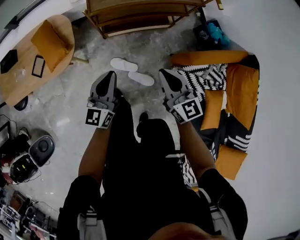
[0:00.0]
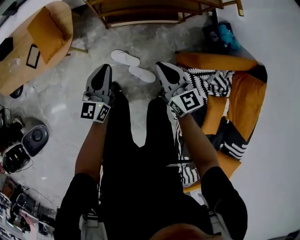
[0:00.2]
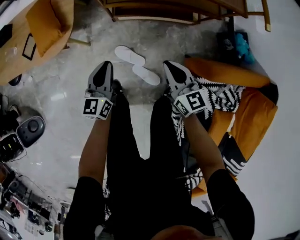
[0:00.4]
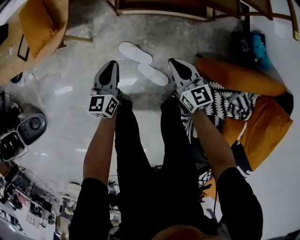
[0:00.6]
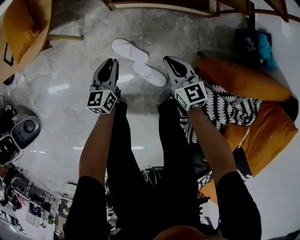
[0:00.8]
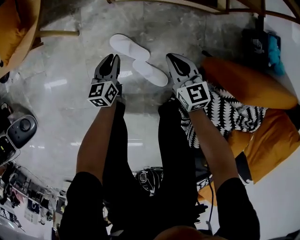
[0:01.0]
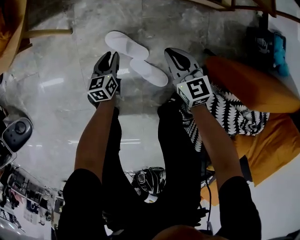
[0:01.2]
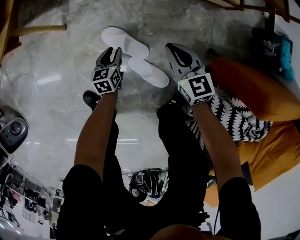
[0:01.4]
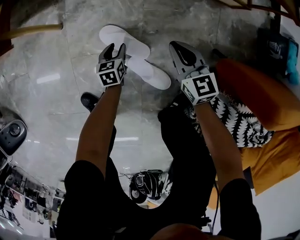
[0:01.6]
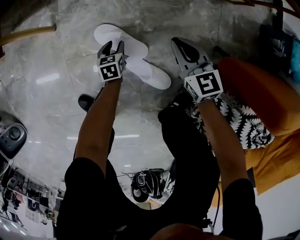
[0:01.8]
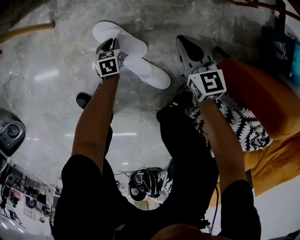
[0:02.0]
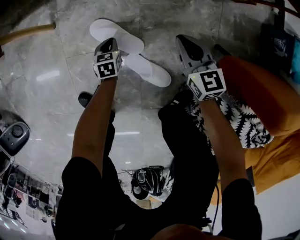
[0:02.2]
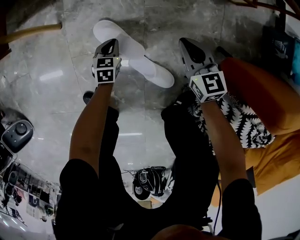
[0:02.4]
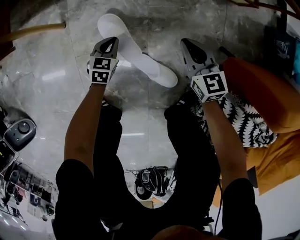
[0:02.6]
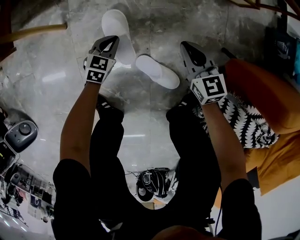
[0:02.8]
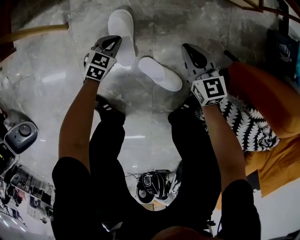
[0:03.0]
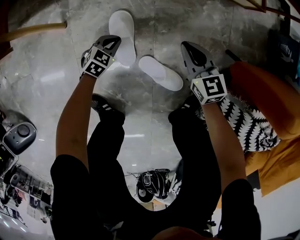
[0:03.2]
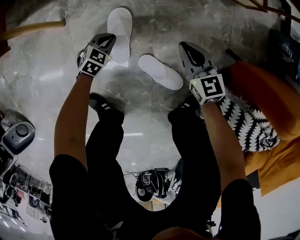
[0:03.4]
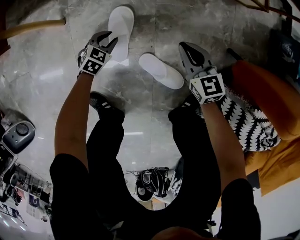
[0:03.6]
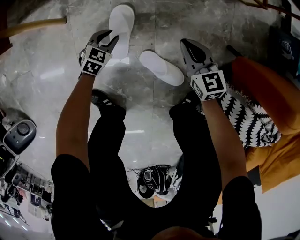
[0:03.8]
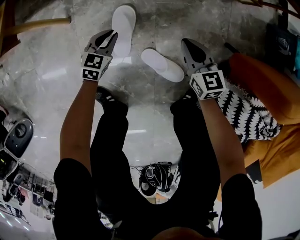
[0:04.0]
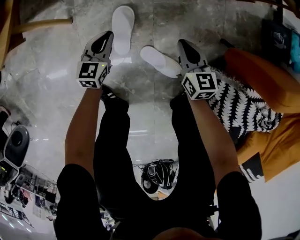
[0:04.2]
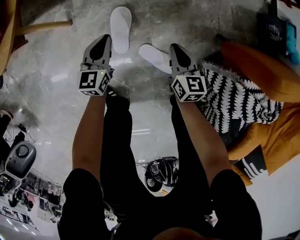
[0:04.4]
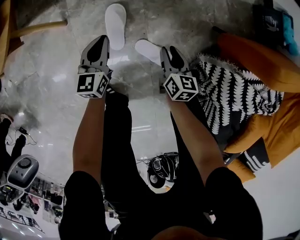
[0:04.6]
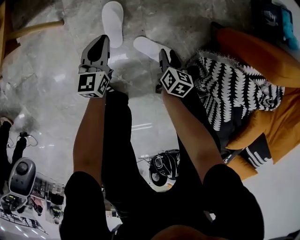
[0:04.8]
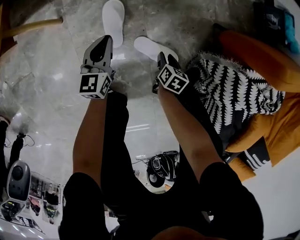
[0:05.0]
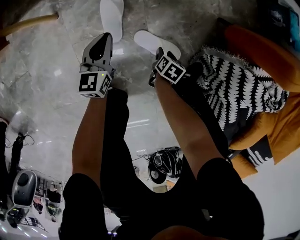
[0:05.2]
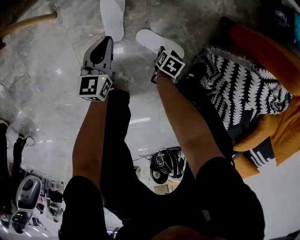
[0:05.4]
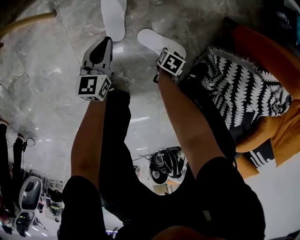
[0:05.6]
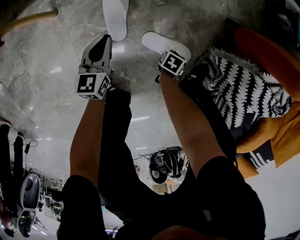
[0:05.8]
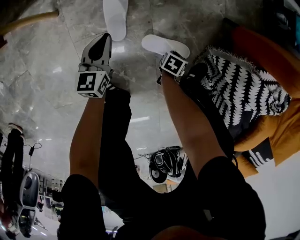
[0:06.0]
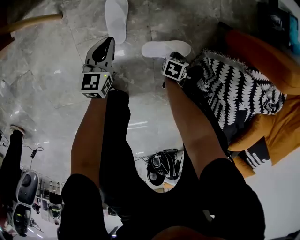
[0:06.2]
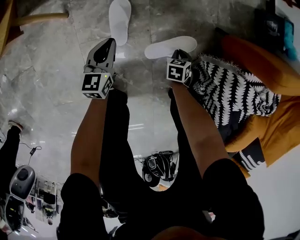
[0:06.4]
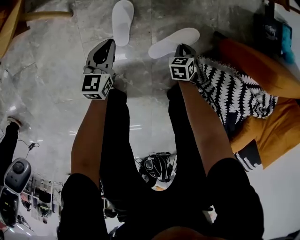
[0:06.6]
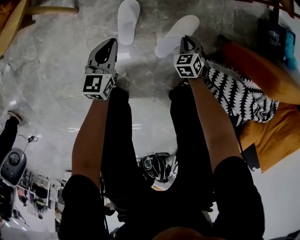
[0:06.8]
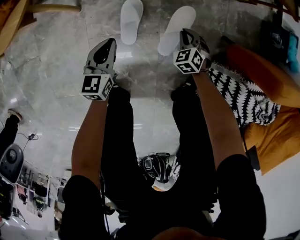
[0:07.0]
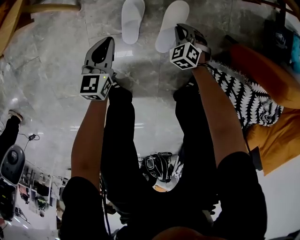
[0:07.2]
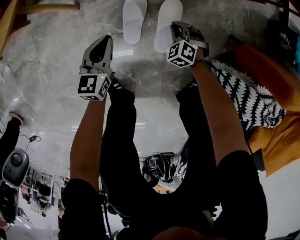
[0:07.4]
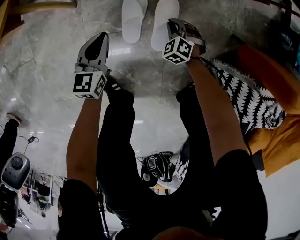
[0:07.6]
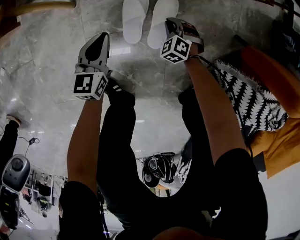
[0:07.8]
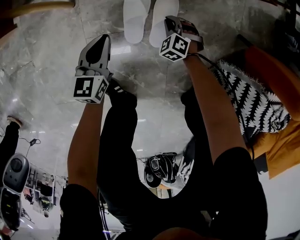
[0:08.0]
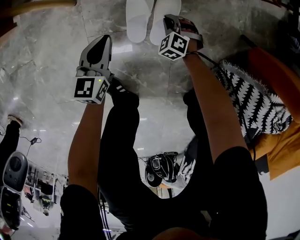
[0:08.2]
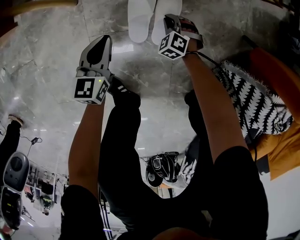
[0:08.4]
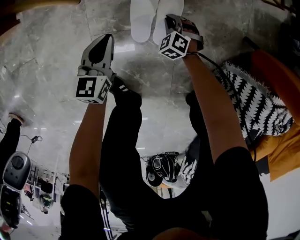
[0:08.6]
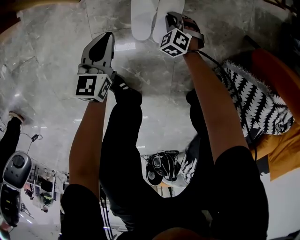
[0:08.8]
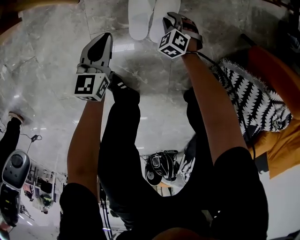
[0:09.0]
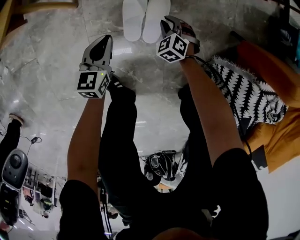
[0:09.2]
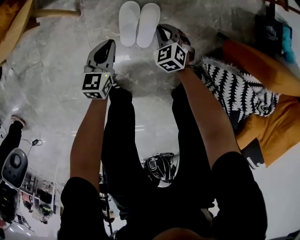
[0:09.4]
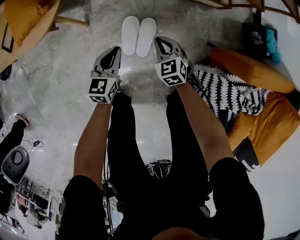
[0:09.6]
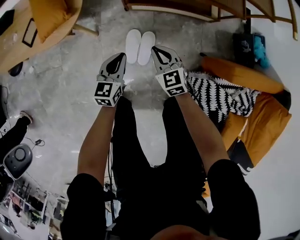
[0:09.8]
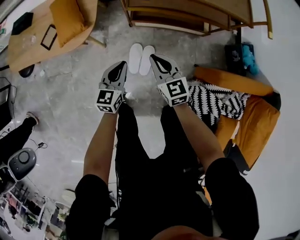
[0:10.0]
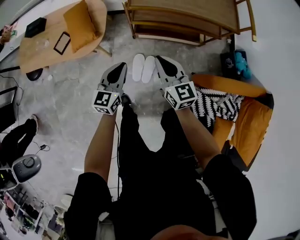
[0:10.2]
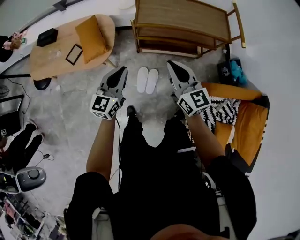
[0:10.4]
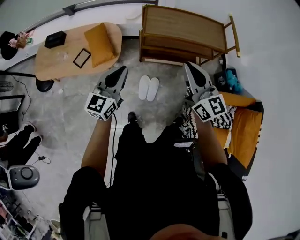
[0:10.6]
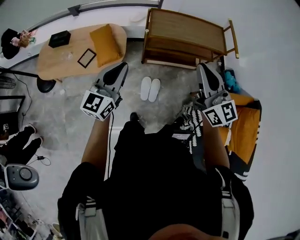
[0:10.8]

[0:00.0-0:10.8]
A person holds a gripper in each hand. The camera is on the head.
0:00.0 to 0:01.6: Both grippers travel together downward, some 60 cm. The left gripper tilts its fingers roughly 50 degrees downward, and opens its fingers. The right gripper changes its angle by about 30 degrees.
0:01.6 to 0:03.0: The left gripper goes downward and returns, roughly 5 cm each way, swivels some 40 degrees, and closes up.
0:03.0 to 0:04.6: The right gripper goes about 10 cm backward, turns by about 40 degrees, and opens up. Meanwhile the left gripper heads upward, covering some 20 cm, rotates some 40 degrees, and opens, then closes again.
0:04.6 to 0:06.2: The right gripper moves downward, roughly 15 cm, tips its fingers downward by some 40 degrees, and closes, while the left gripper is displaced downward by some 5 cm.
0:06.2 to 0:07.8: The left gripper shifts by roughly 10 cm; the right gripper moves some 10 cm upward and comes back, and rolls counterclockwise, seen from behind, by some 80 degrees.
0:07.8 to 0:09.2: There are only small adjustments of the grippers.
0:09.2 to 0:10.8: The grippers both shift upward by about 90 cm. The left gripper angles its fingers upward, by approximately 40 degrees; the right gripper points its fingers some 70 degrees further upward.

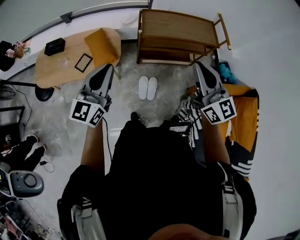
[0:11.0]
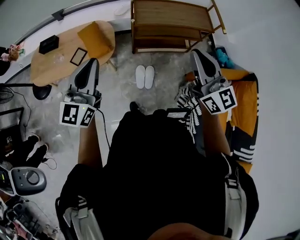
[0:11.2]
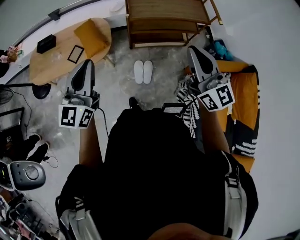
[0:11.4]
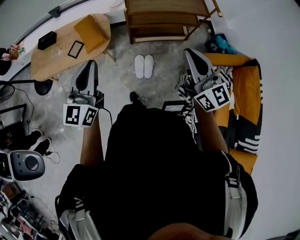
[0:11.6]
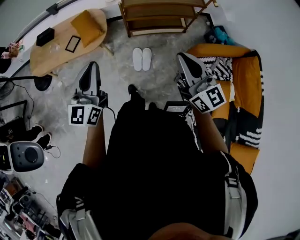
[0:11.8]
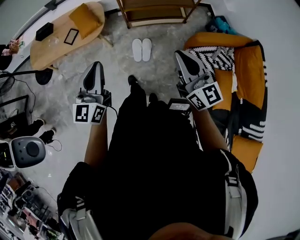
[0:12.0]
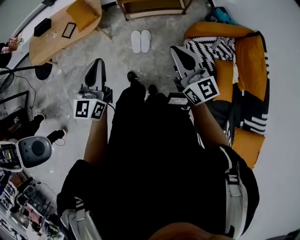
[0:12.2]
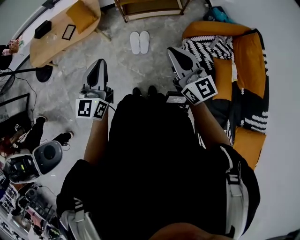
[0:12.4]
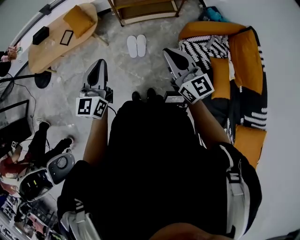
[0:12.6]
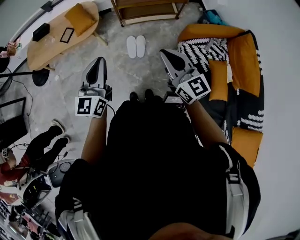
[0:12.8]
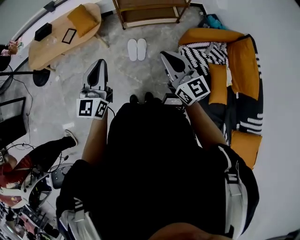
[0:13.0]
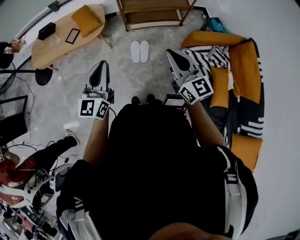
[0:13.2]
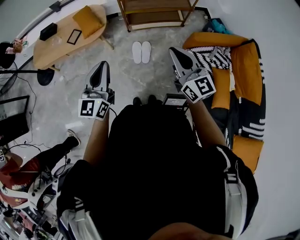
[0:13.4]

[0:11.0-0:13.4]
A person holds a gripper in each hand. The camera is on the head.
0:11.0 to 0:12.2: The right gripper travels backward and downward by roughly 25 cm, while the left gripper travels backward and to the right by about 25 cm.
0:12.2 to 0:13.4: There are only small adjustments of the grippers.

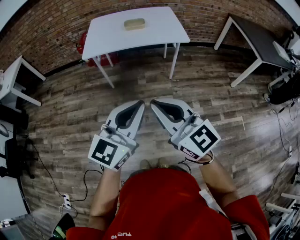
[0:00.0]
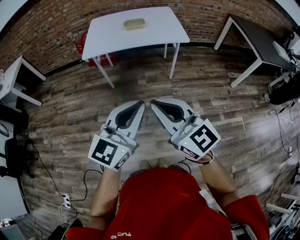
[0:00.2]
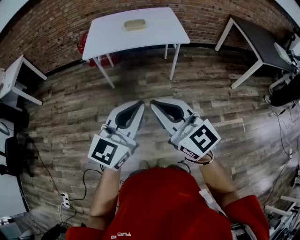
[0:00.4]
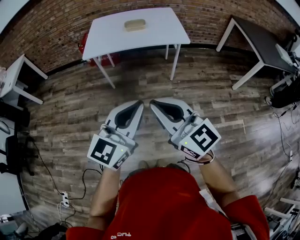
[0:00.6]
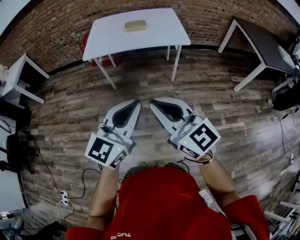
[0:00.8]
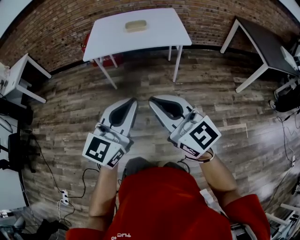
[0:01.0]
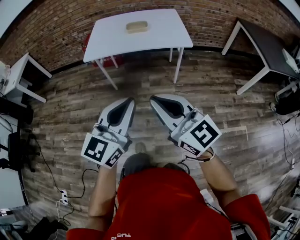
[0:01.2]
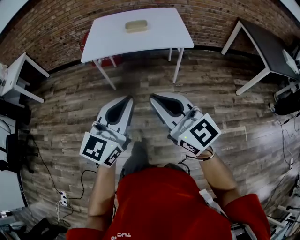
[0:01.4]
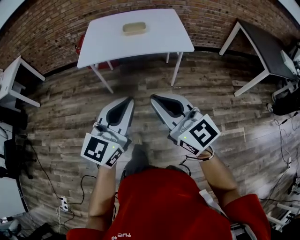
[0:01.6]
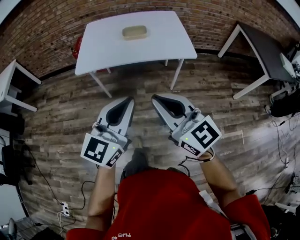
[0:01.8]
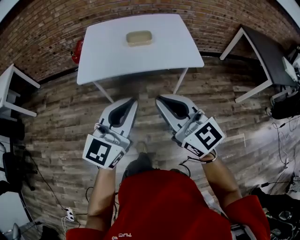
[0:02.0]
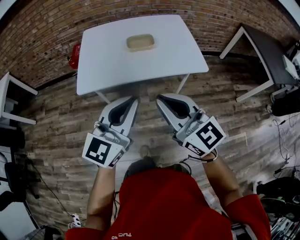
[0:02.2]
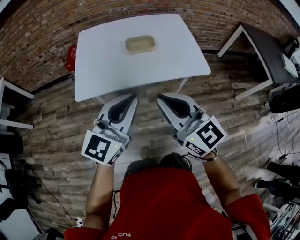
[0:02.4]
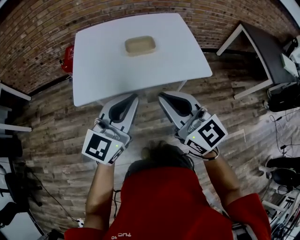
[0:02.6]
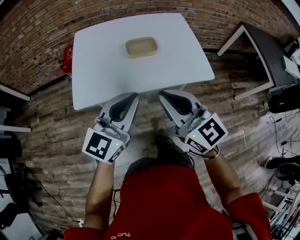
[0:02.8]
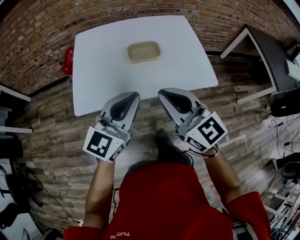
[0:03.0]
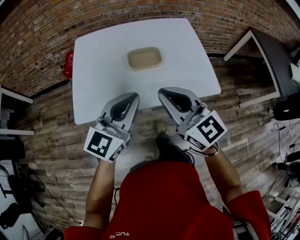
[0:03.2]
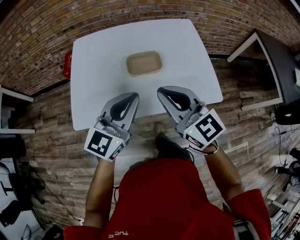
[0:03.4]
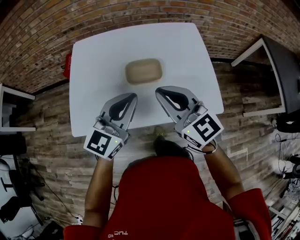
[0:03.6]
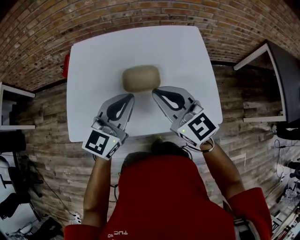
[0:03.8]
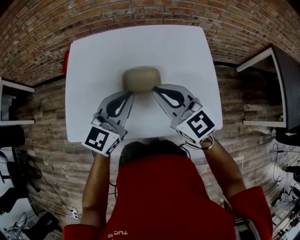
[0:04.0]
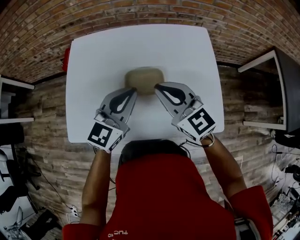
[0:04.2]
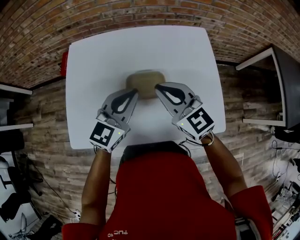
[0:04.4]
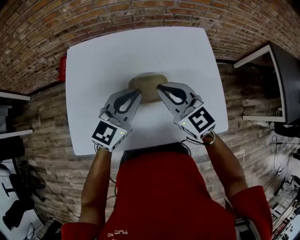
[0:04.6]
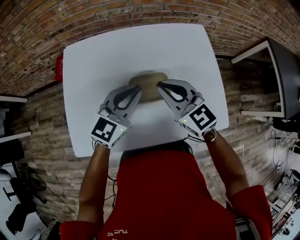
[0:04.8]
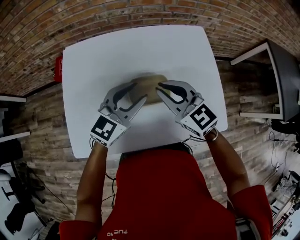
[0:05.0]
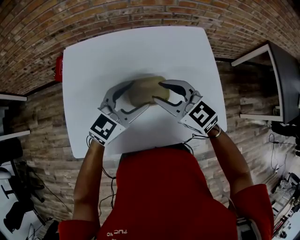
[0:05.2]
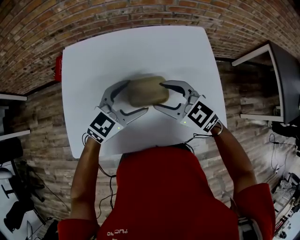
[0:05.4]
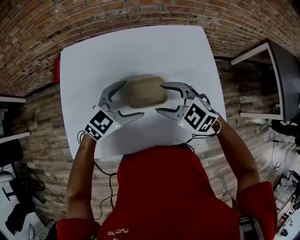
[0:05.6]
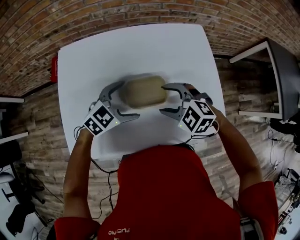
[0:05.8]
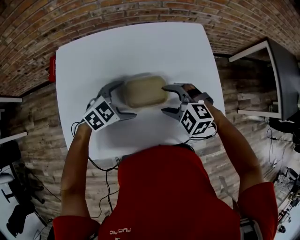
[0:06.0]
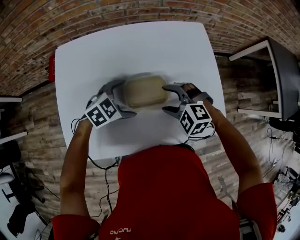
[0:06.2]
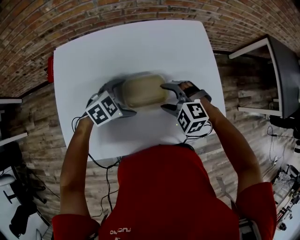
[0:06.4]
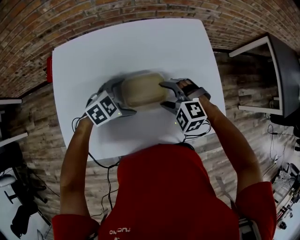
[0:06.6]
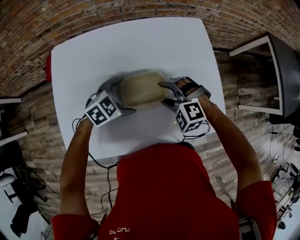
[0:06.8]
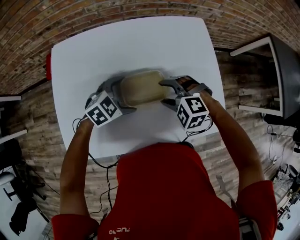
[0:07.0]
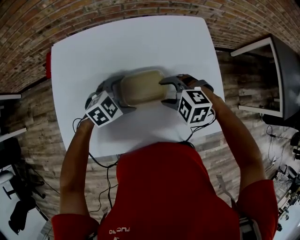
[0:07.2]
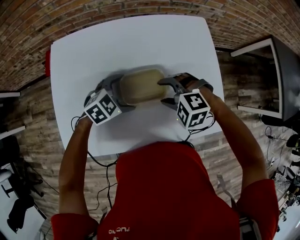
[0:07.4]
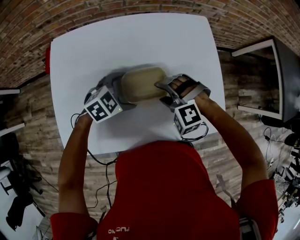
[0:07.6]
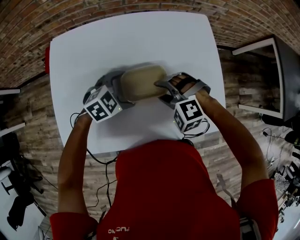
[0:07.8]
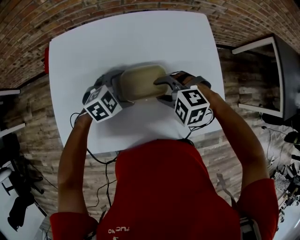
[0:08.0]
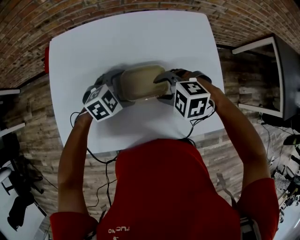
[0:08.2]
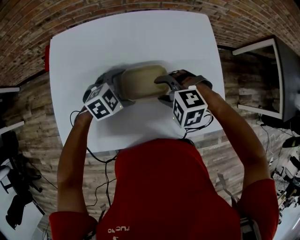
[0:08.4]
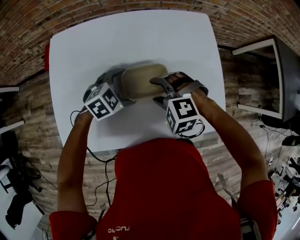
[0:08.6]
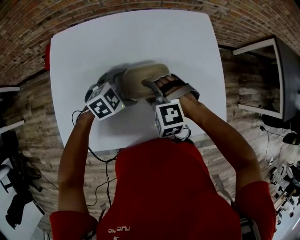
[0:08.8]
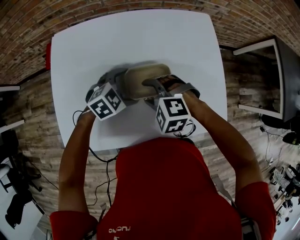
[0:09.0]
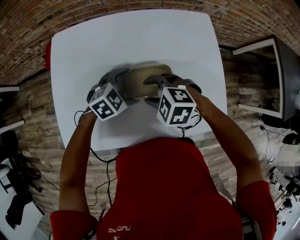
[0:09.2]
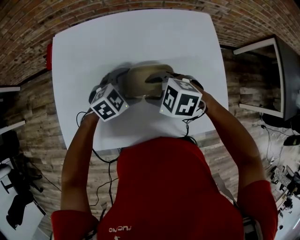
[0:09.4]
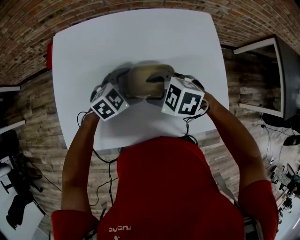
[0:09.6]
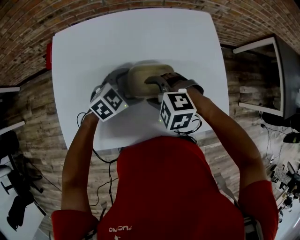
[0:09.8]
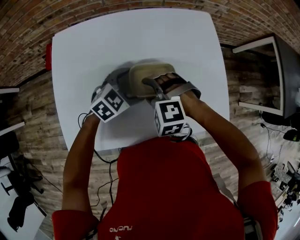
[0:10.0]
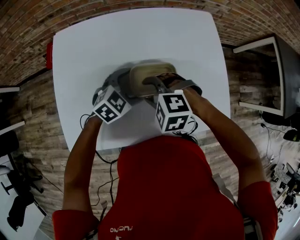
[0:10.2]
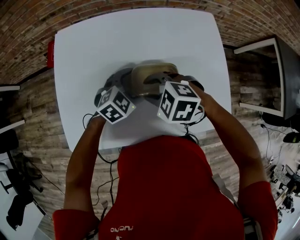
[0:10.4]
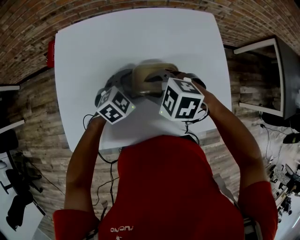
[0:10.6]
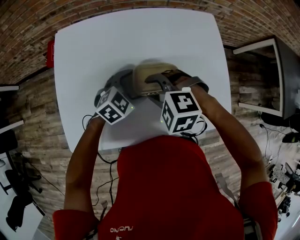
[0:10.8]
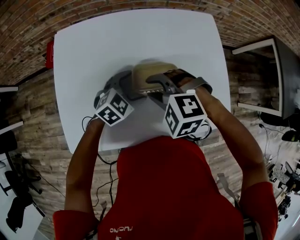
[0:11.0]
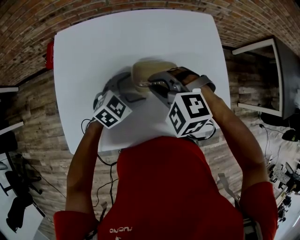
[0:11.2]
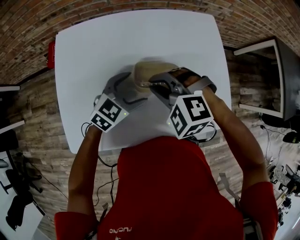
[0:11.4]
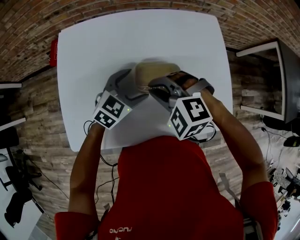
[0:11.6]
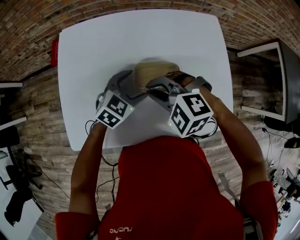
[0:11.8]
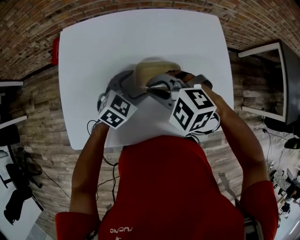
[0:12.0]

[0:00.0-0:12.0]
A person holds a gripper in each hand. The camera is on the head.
0:00.0 to 0:01.6: Both grippers travel together forward, roughly 15 cm.
0:01.6 to 0:03.0: The two grippers travel together, forward, some 40 cm.
0:03.0 to 0:04.4: Both grippers travel together forward, approximately 30 cm.
0:04.4 to 0:06.0: Both grippers travel together downward, about 15 cm. The left gripper tilts its fingers about 30 degrees downward, and opens. The right gripper tips its fingers downward by approximately 40 degrees, and opens up.
0:06.0 to 0:07.6: The right gripper turns by approximately 20 degrees.
0:07.6 to 0:09.0: The right gripper moves some 5 cm.
0:10.4 to 0:12.0: The right gripper closes its fingers.
